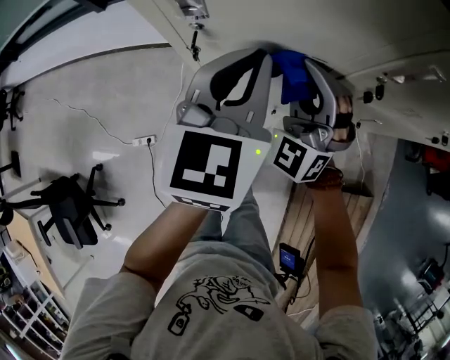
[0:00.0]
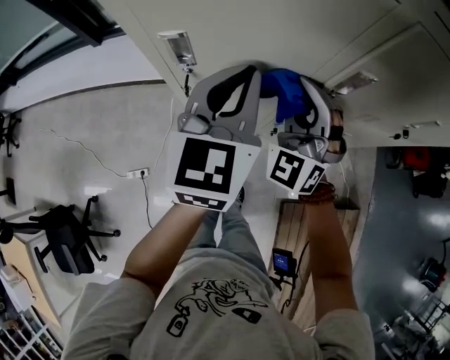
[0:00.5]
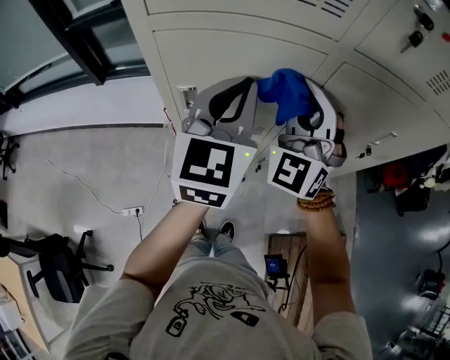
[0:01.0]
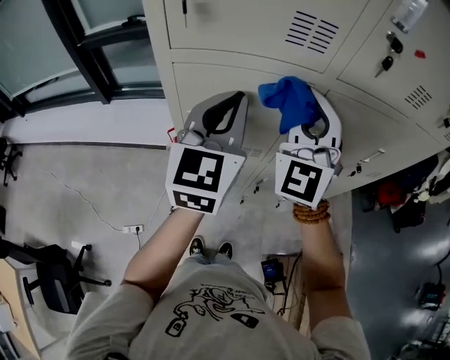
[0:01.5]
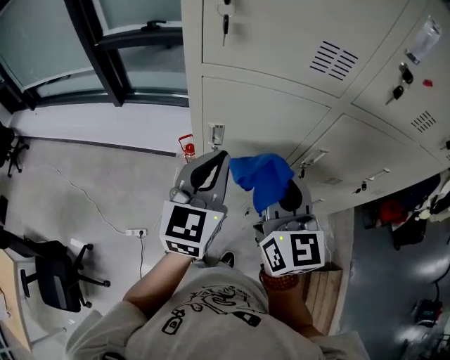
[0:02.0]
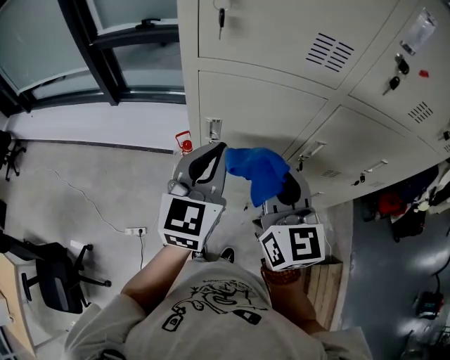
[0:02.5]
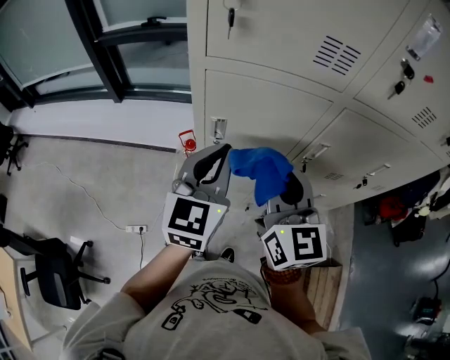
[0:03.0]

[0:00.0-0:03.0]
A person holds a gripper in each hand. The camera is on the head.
0:00.0 to 0:01.5: The two grippers go approximately 30 cm upward. The right gripper swivels roughly 20 degrees.
0:01.5 to 0:03.0: The left gripper moves downward, backward and to the left, about 10 cm, while the right gripper shifts some 15 cm backward, to the left and downward, and rotates around the line of its fingers by about 50 degrees, clockwise from behind.

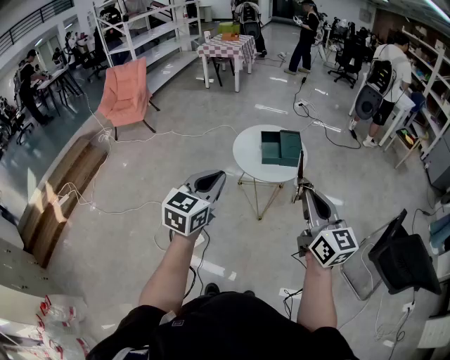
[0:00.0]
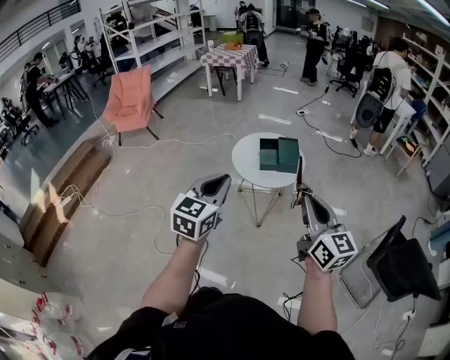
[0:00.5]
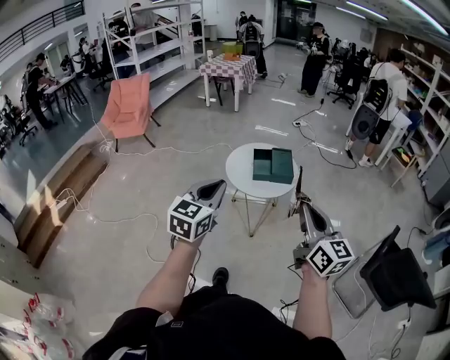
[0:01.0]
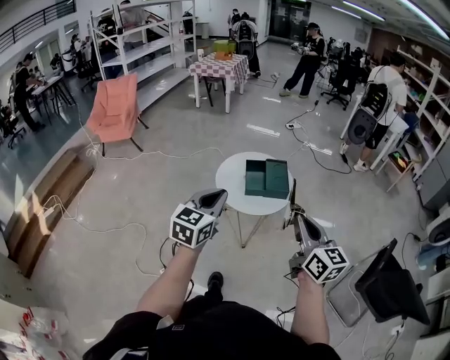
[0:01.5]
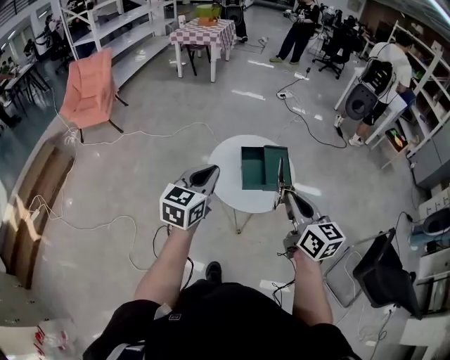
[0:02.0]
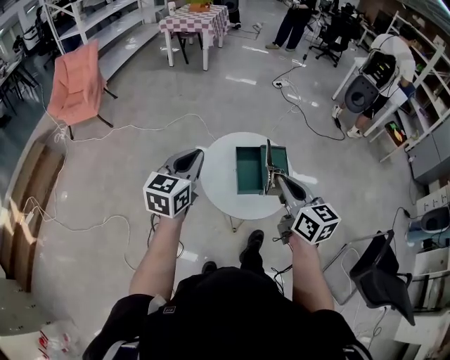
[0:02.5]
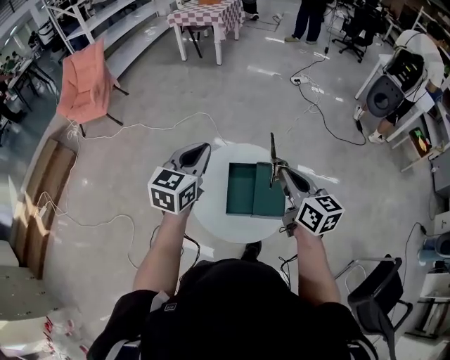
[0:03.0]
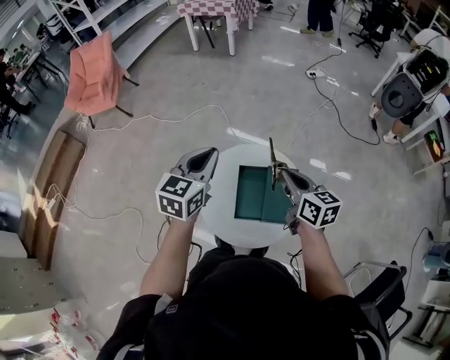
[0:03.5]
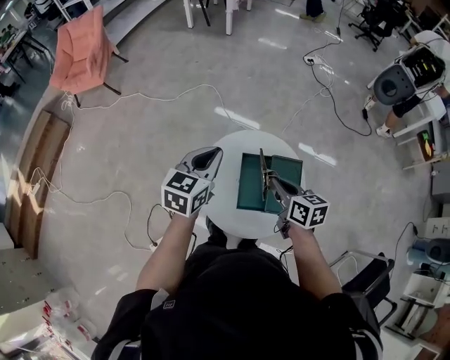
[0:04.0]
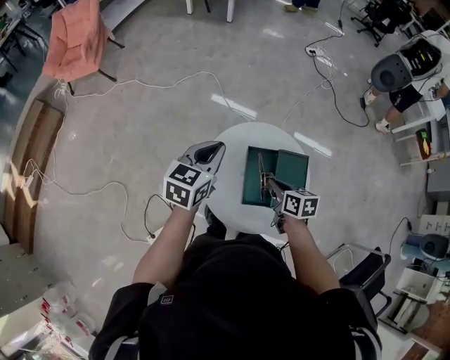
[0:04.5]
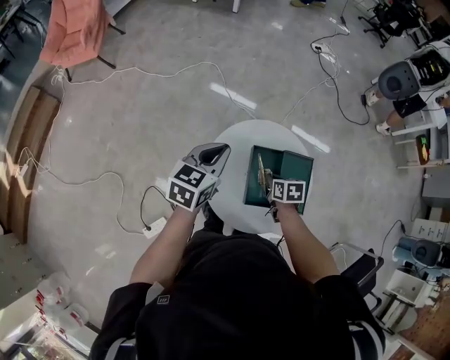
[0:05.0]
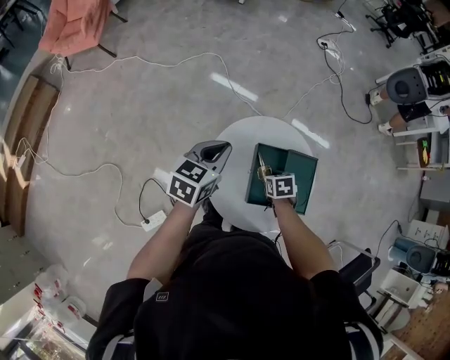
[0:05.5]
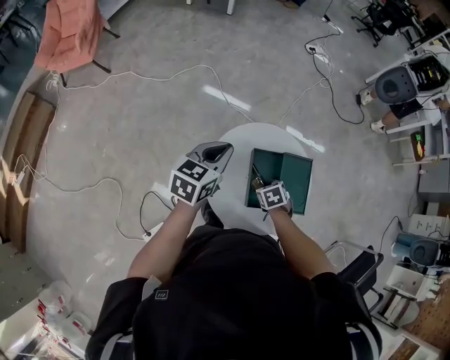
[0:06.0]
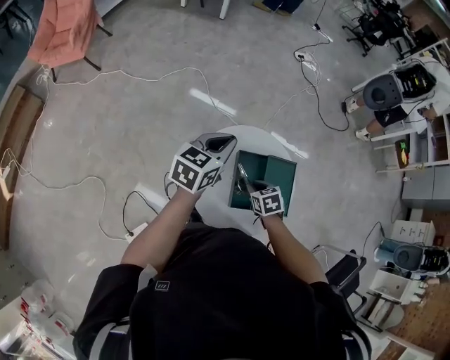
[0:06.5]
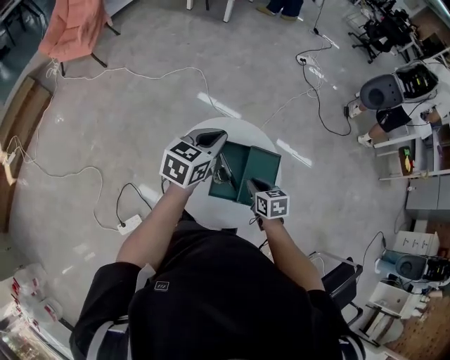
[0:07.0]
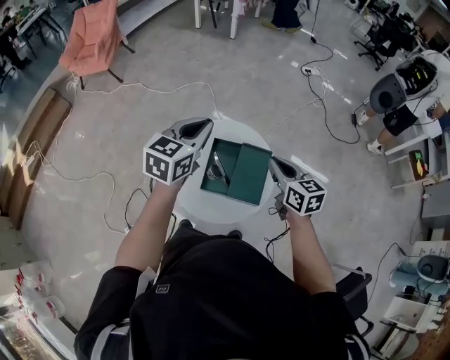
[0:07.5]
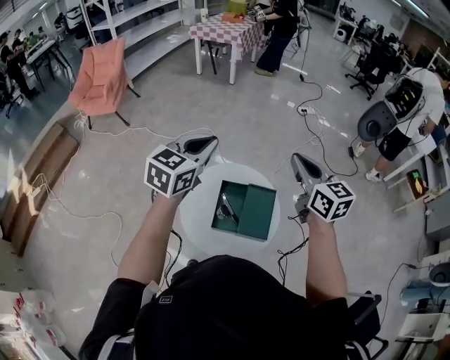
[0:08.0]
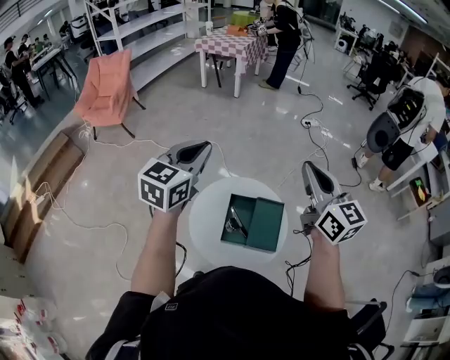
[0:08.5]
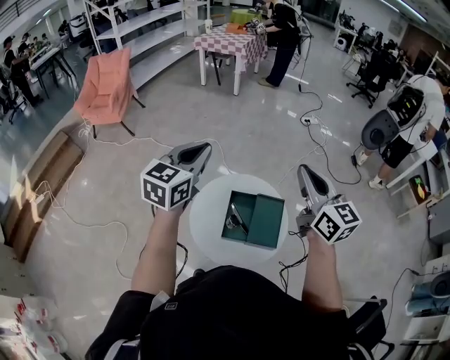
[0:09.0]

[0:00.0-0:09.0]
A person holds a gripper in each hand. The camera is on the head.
0:00.0 to 0:02.0: Both grippers travel together forward, approximately 25 cm.
0:02.0 to 0:04.5: The left gripper travels forward and downward by about 30 cm; the right gripper travels downward and forward by approximately 40 cm, and tilts its fingers approximately 30 degrees downward.
0:04.5 to 0:07.0: The right gripper moves about 10 cm downward and comes back, and swivels about 20 degrees; the left gripper shifts about 10 cm to the right.
0:07.0 to 0:09.0: The right gripper shifts about 40 cm upward, and tips its fingers upward by approximately 50 degrees; the left gripper travels upward by about 20 cm, and rotates roughly 20 degrees.

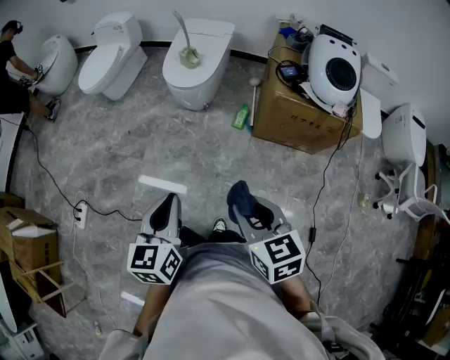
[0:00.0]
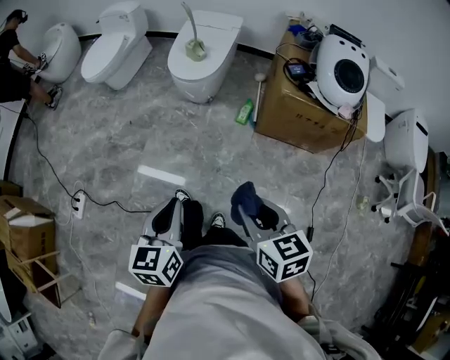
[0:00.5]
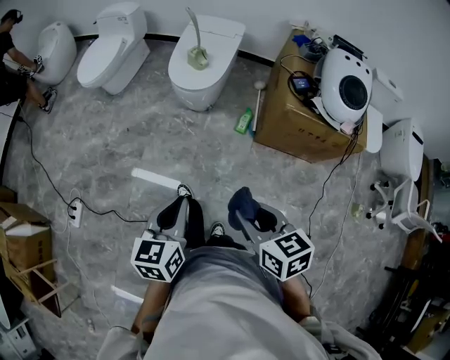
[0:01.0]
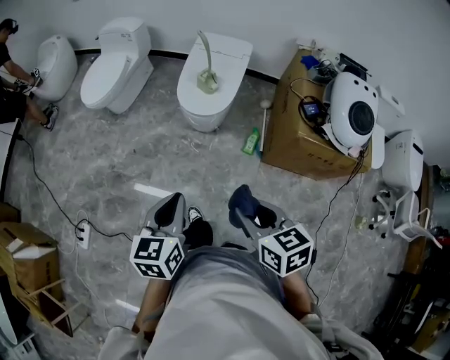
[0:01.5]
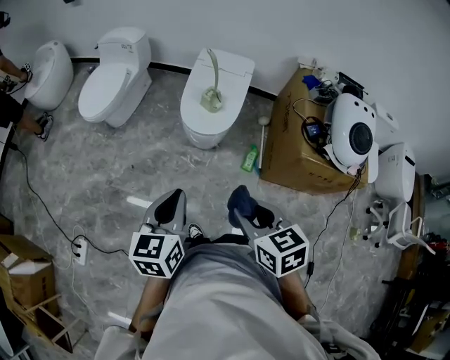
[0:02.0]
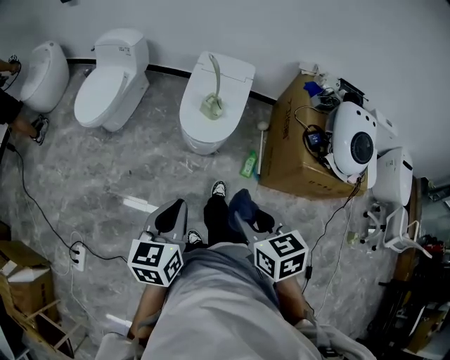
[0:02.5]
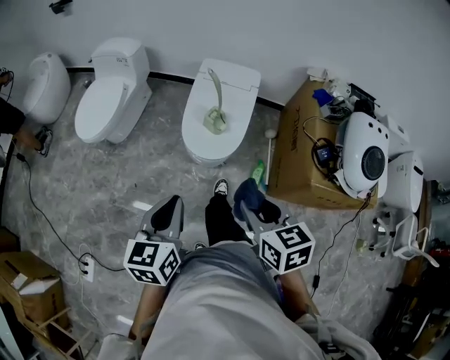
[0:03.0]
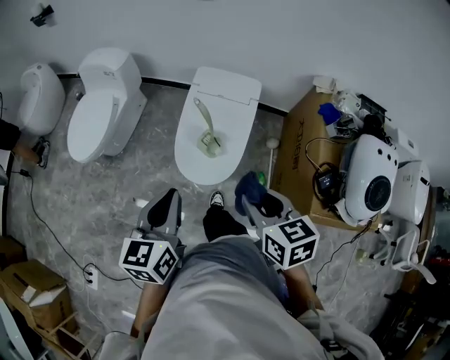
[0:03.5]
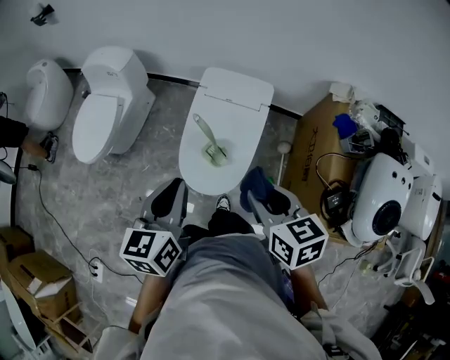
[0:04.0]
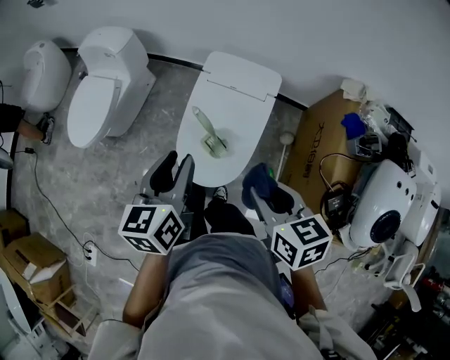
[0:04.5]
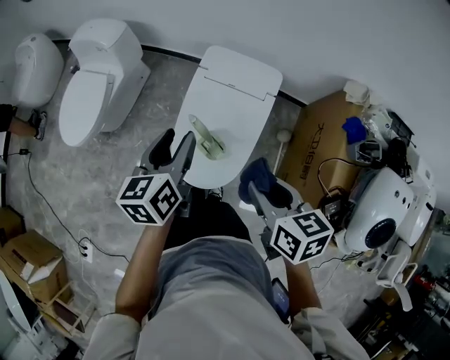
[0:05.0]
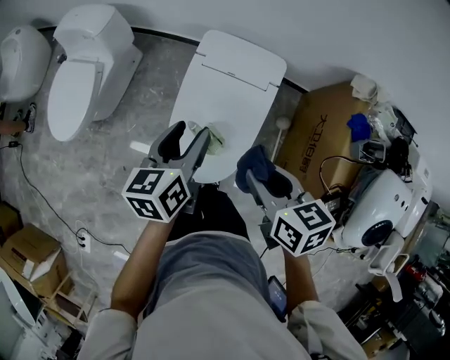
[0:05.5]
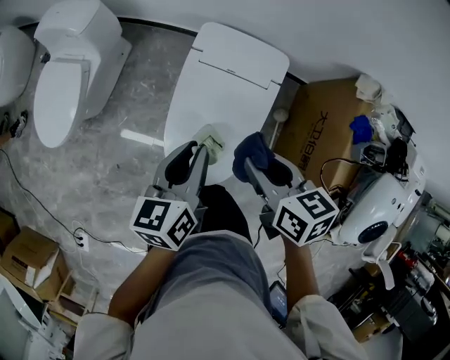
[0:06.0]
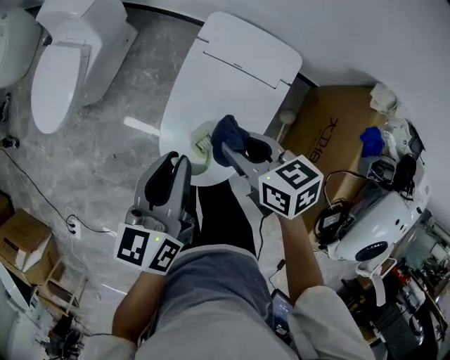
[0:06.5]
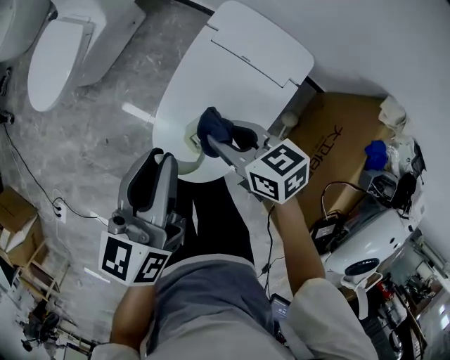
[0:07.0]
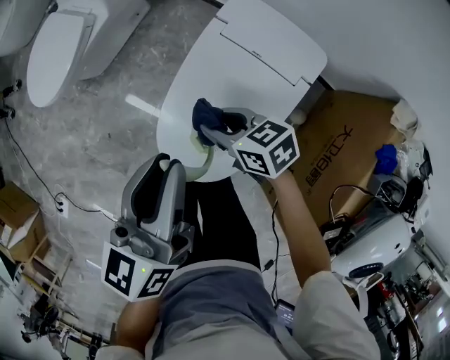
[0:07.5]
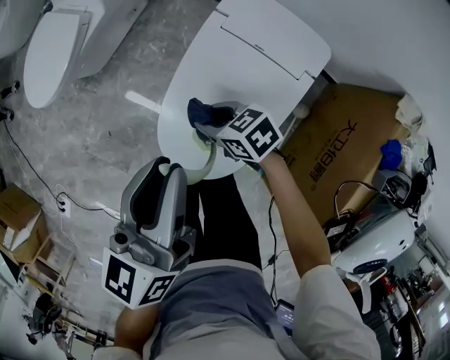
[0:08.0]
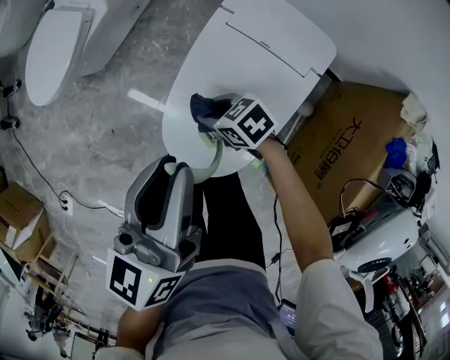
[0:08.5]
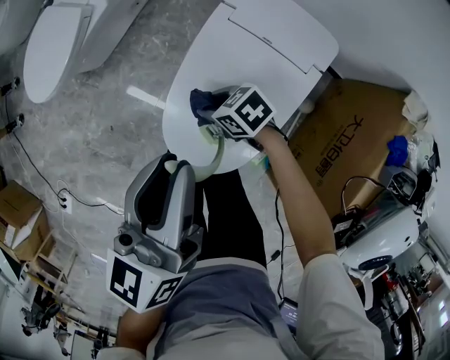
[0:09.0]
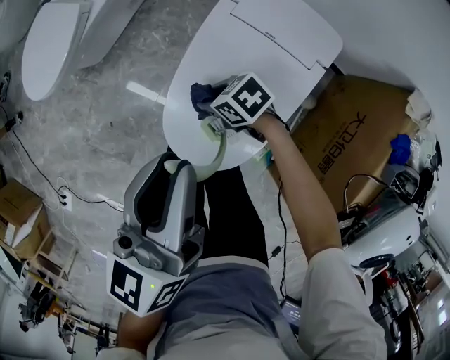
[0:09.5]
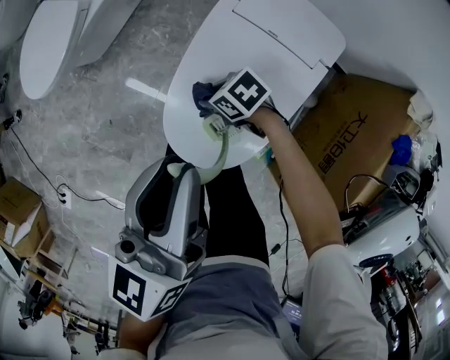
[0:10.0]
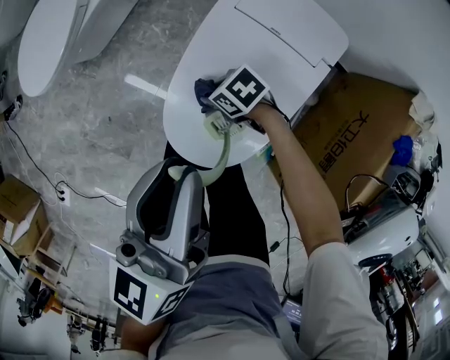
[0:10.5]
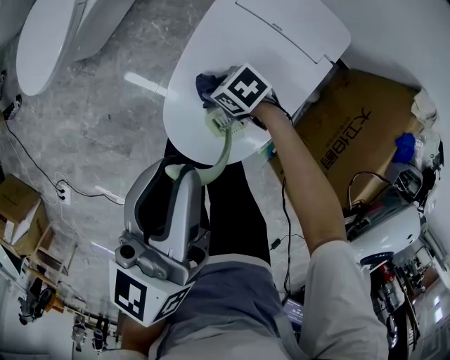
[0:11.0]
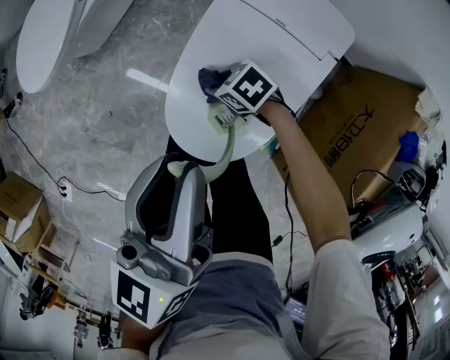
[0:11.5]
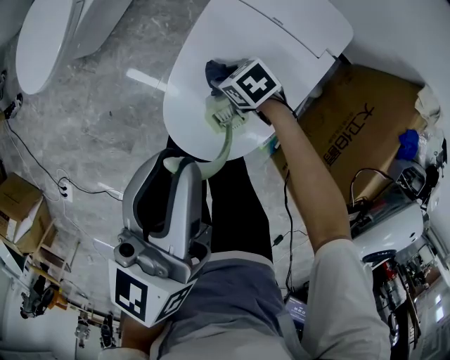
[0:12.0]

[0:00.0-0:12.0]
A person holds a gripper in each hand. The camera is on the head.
0:00.0 to 0:02.0: The grippers both shift forward and to the left by some 35 cm.
0:02.0 to 0:04.0: Both grippers are carried forward, about 50 cm.
0:04.0 to 0:06.0: The grippers both shift forward and downward by approximately 25 cm.
0:06.0 to 0:08.0: The right gripper moves downward, roughly 25 cm, and changes its angle by some 50 degrees.
0:08.0 to 0:10.0: The right gripper is displaced downward by approximately 10 cm.
0:10.0 to 0:12.0: There are only small adjustments of the grippers.

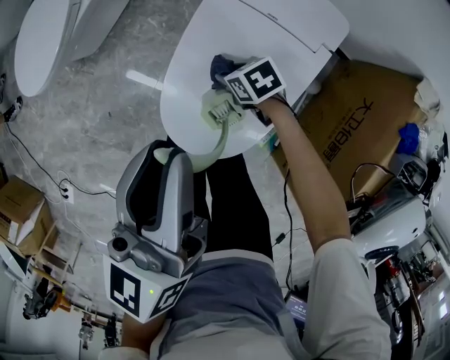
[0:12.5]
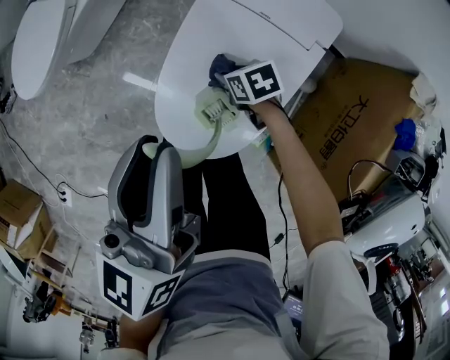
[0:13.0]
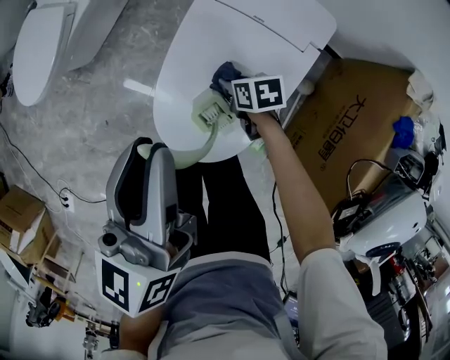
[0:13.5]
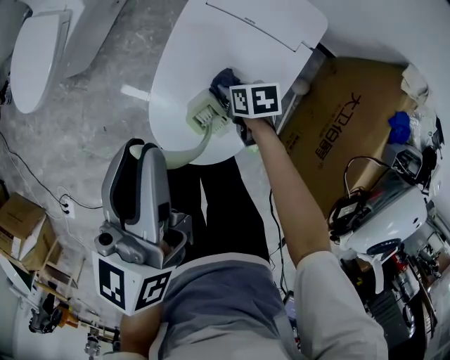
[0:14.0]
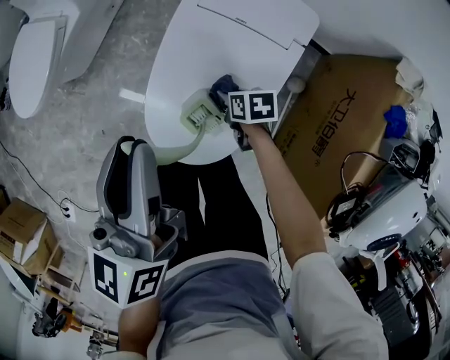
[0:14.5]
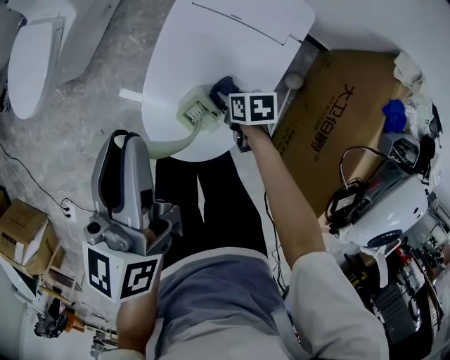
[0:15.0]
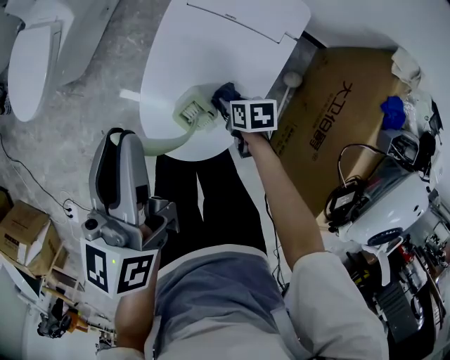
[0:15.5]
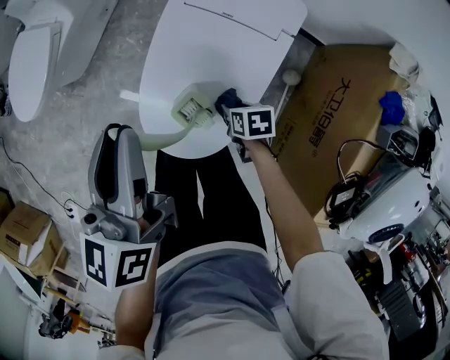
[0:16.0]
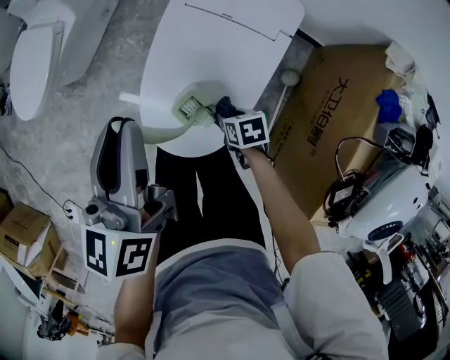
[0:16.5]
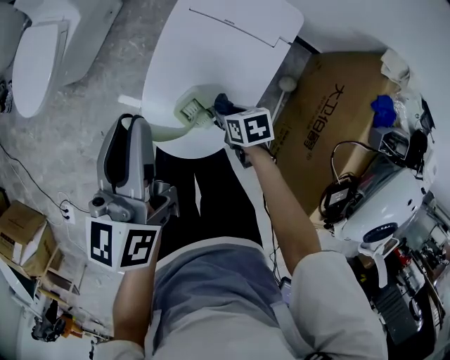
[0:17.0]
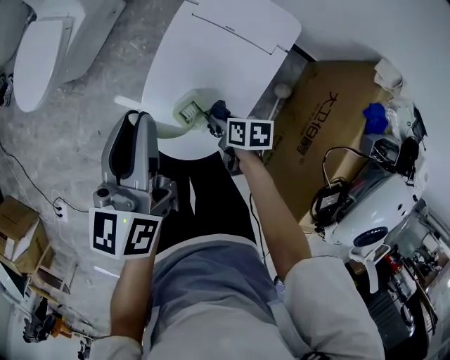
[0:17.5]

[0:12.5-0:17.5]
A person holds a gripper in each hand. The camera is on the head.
0:12.5 to 0:15.0: The right gripper moves backward and to the right, some 10 cm, and changes its angle by approximately 40 degrees.
0:15.0 to 0:17.5: The right gripper is displaced upward and backward by roughly 10 cm.
